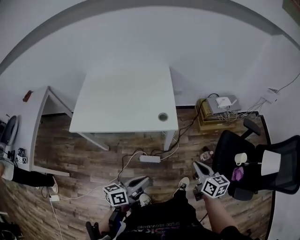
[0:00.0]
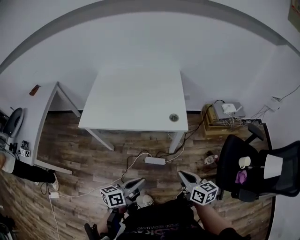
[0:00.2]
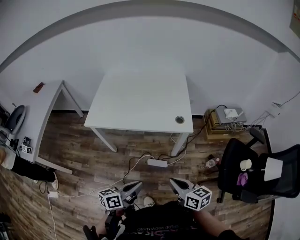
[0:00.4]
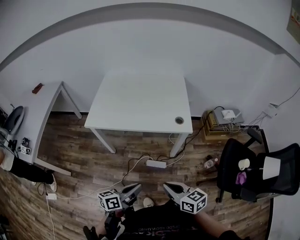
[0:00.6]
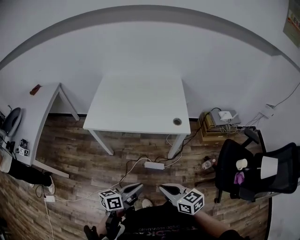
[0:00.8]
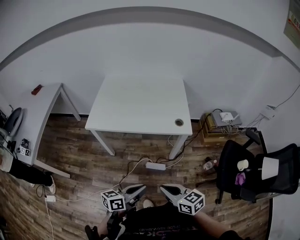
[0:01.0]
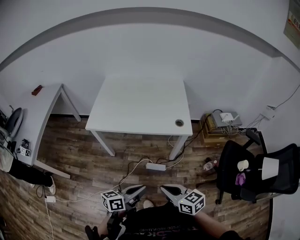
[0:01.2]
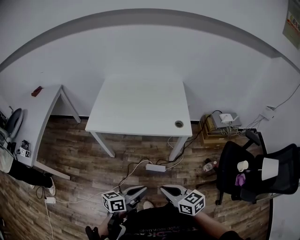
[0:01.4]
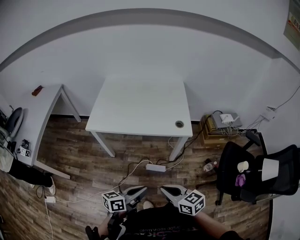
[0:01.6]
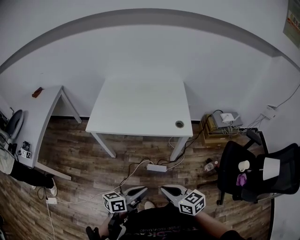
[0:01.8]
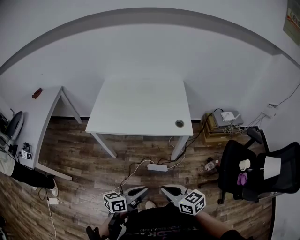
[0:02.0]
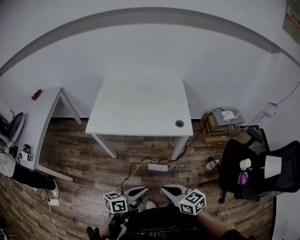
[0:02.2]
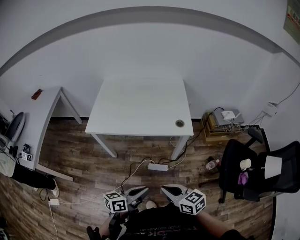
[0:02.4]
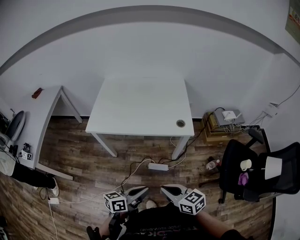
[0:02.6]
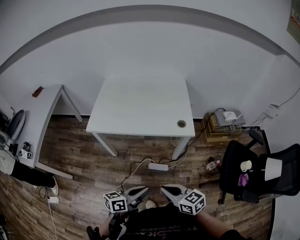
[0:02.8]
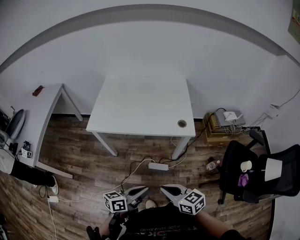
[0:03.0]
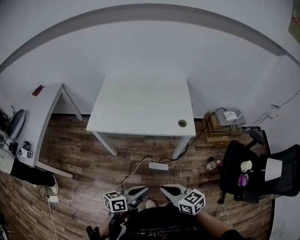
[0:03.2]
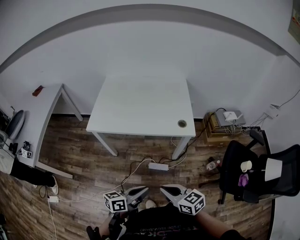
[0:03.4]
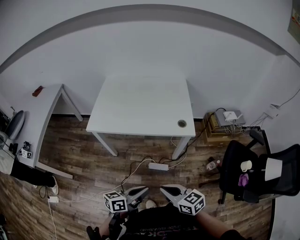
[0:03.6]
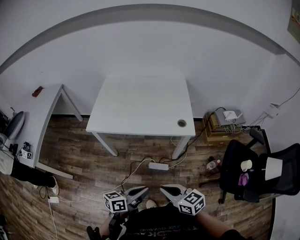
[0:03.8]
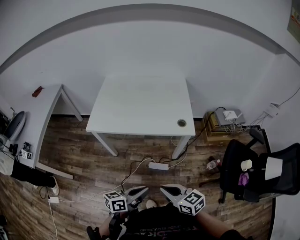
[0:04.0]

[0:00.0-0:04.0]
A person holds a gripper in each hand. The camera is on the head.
0:00.0 to 0:01.4: The left gripper is displaced to the left and backward by approximately 15 cm. The right gripper heads to the left and backward, covering roughly 30 cm, and changes its angle by about 30 degrees.
0:01.4 to 0:02.6: There are only small adjustments of the grippers.
0:02.6 to 0:04.0: Both grippers stay put.

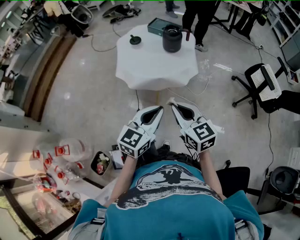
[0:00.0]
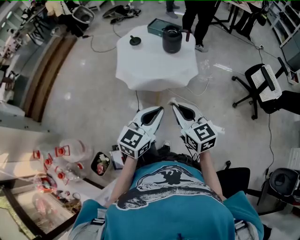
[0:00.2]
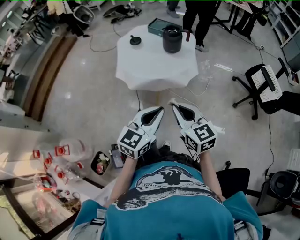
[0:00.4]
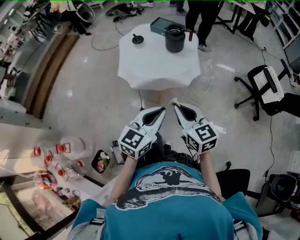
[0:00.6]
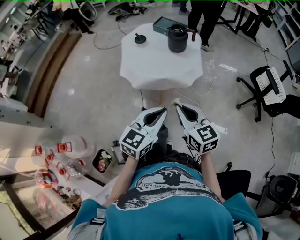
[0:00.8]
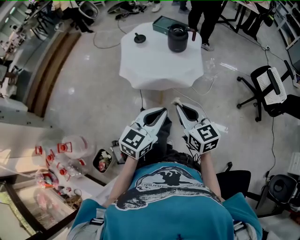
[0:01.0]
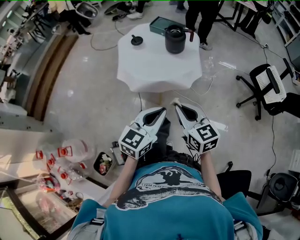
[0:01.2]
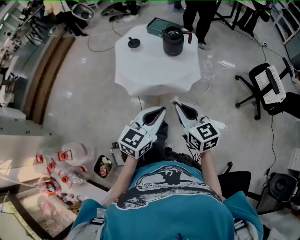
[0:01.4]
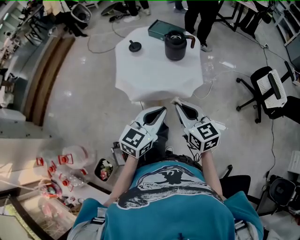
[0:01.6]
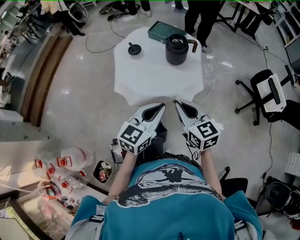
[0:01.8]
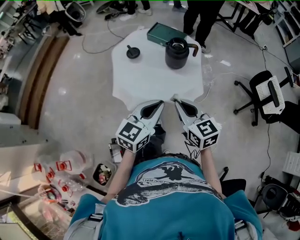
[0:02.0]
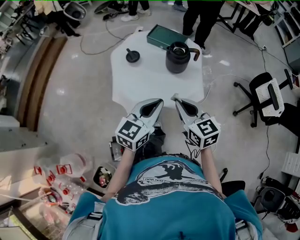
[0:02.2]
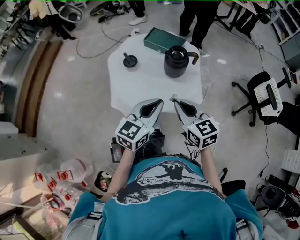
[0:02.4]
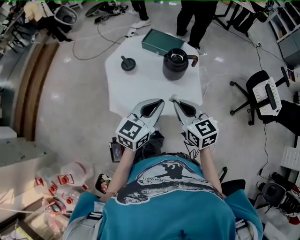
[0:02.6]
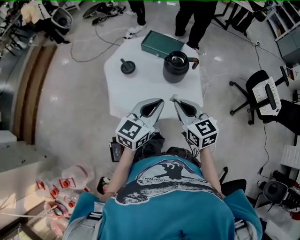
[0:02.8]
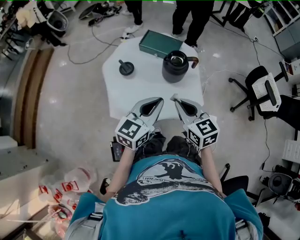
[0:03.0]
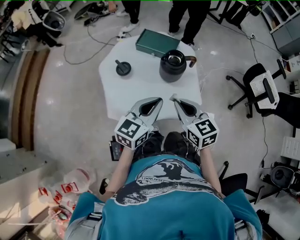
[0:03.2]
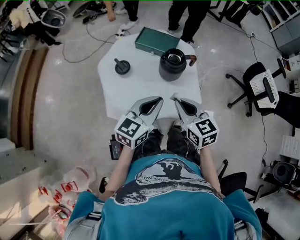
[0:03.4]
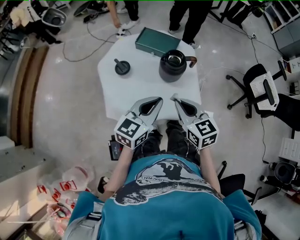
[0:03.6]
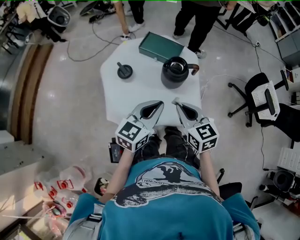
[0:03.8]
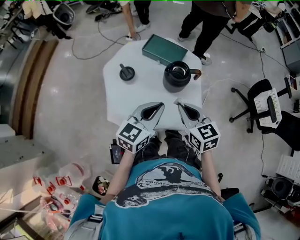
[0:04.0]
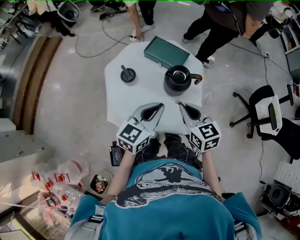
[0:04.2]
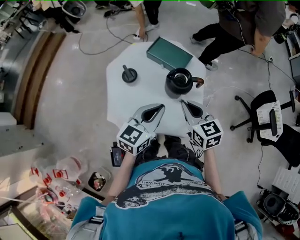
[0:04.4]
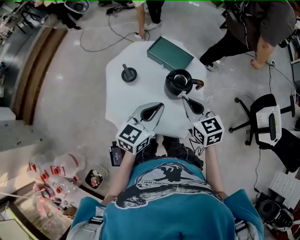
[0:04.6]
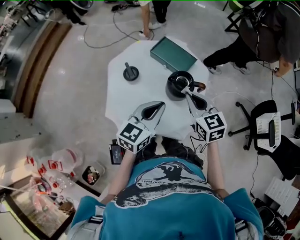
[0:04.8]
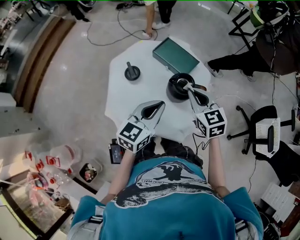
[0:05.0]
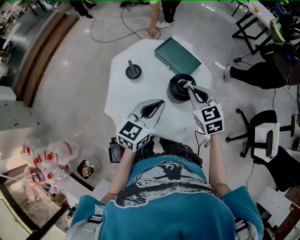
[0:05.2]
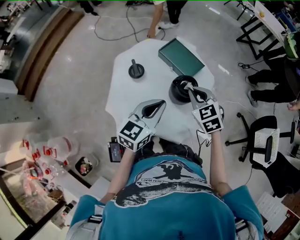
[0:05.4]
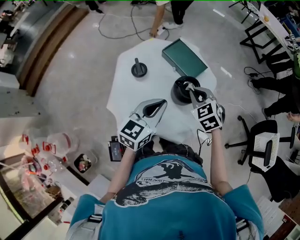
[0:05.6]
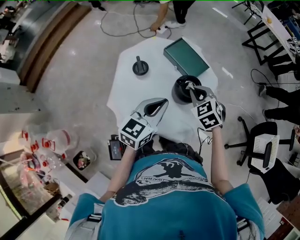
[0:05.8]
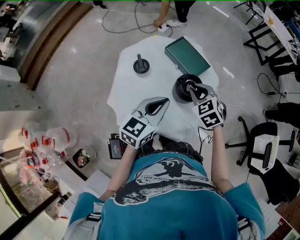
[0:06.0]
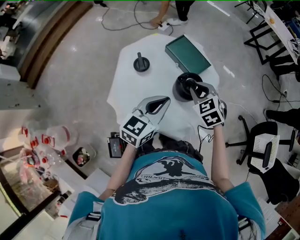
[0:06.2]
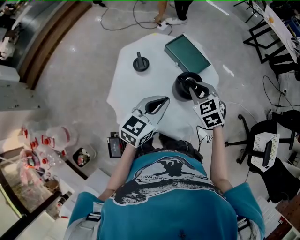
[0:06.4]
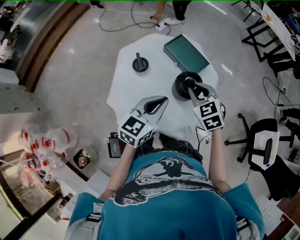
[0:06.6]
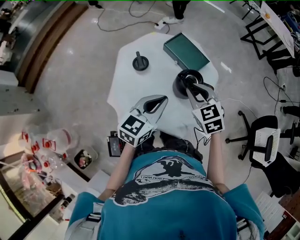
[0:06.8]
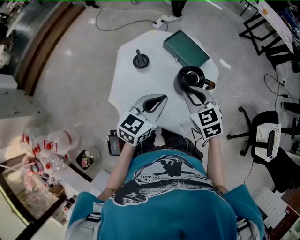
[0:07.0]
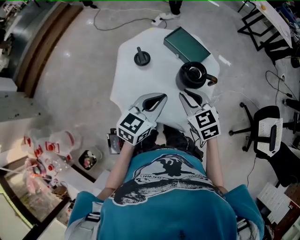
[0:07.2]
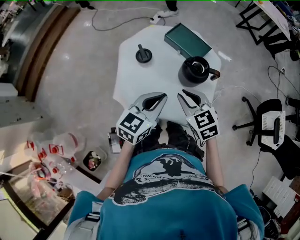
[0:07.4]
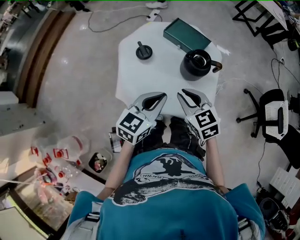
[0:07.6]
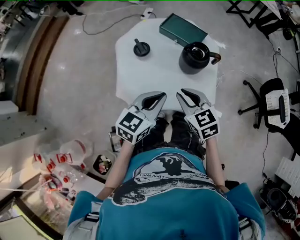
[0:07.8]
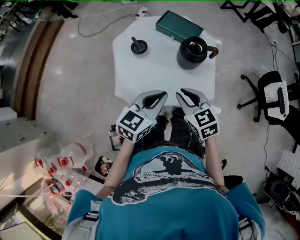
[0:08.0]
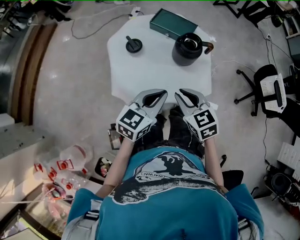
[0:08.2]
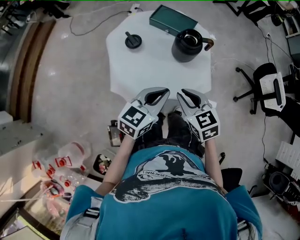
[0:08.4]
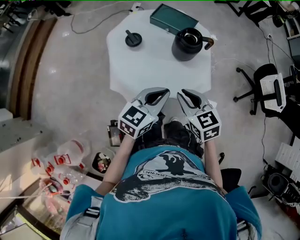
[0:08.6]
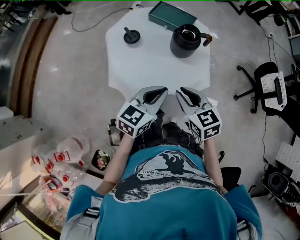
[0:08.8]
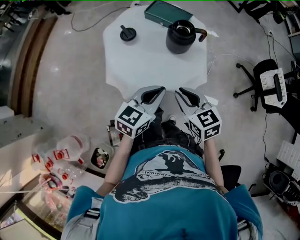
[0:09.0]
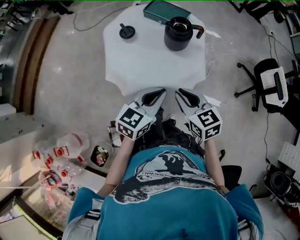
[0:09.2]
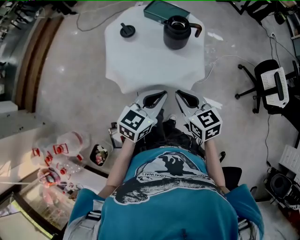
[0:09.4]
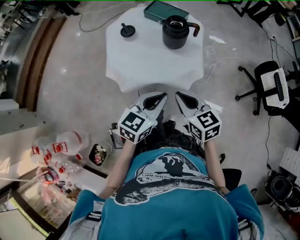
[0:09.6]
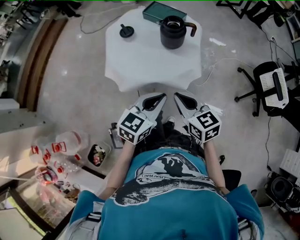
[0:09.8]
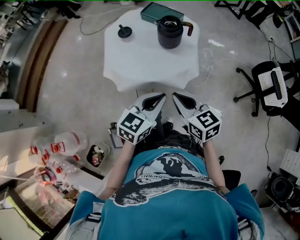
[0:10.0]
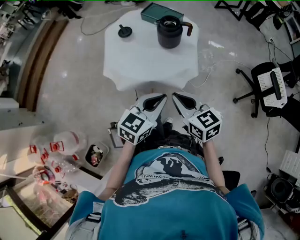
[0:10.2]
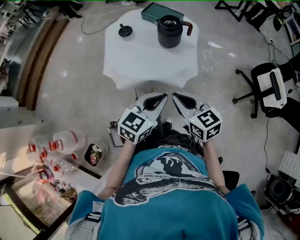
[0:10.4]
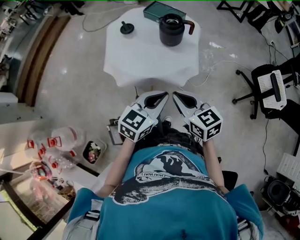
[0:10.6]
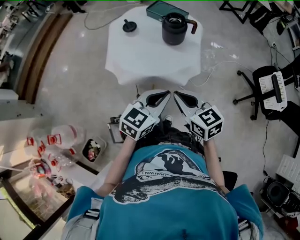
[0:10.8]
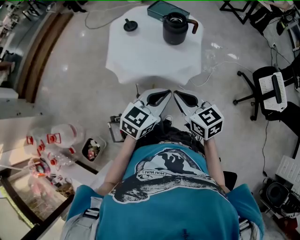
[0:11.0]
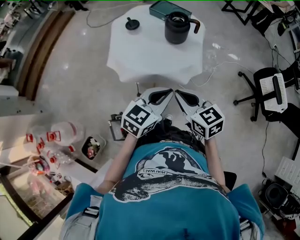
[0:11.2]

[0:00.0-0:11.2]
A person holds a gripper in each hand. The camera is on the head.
0:00.0 to 0:01.6: Both grippers move forward, approximately 10 cm.
0:01.6 to 0:03.2: The two grippers go approximately 20 cm forward.
0:03.2 to 0:04.8: The right gripper moves forward, about 15 cm. Meanwhile the left gripper heads forward, covering approximately 10 cm.
0:04.8 to 0:06.4: The right gripper goes roughly 5 cm forward, and swivels some 30 degrees.
0:06.4 to 0:08.0: The right gripper is displaced backward and to the left by approximately 20 cm, and rotates approximately 30 degrees, while the left gripper goes approximately 15 cm backward and to the left.
0:08.0 to 0:09.6: Both grippers move backward and to the right, approximately 15 cm.
0:09.6 to 0:11.2: The left gripper shifts by about 5 cm; the right gripper ends up some 5 cm from where it was.

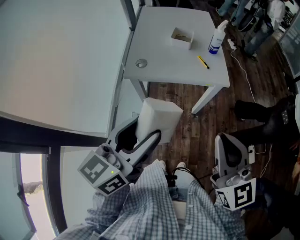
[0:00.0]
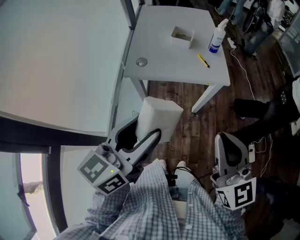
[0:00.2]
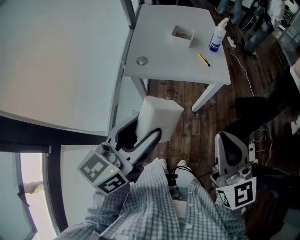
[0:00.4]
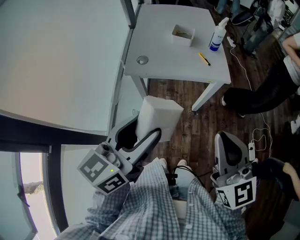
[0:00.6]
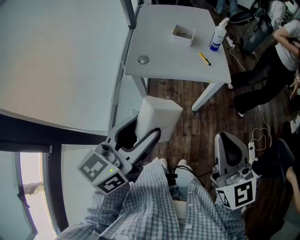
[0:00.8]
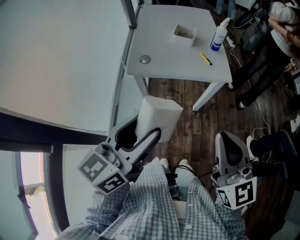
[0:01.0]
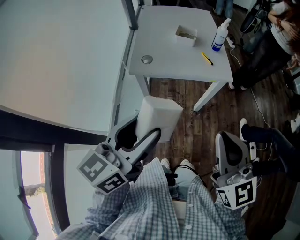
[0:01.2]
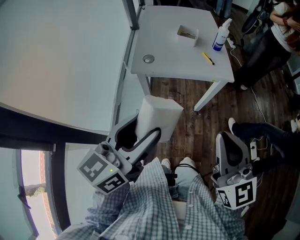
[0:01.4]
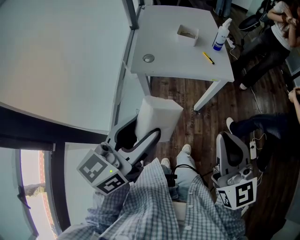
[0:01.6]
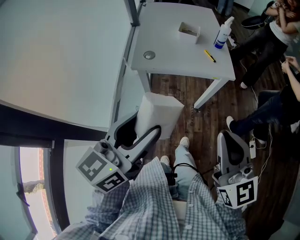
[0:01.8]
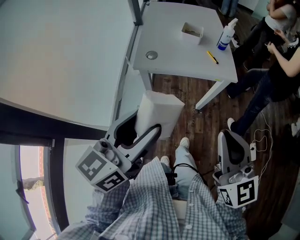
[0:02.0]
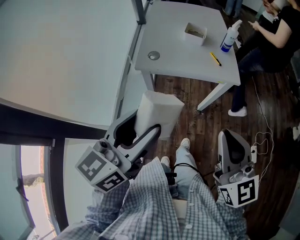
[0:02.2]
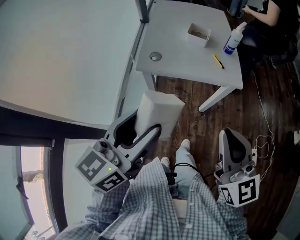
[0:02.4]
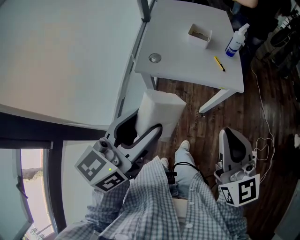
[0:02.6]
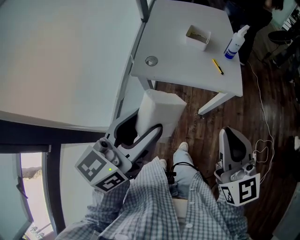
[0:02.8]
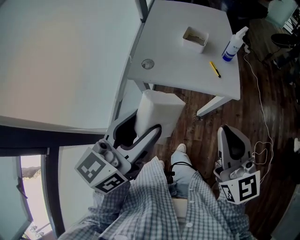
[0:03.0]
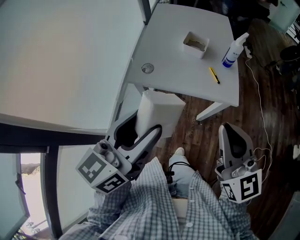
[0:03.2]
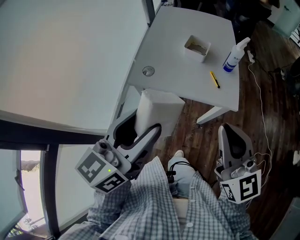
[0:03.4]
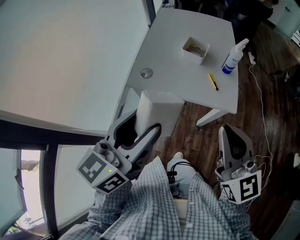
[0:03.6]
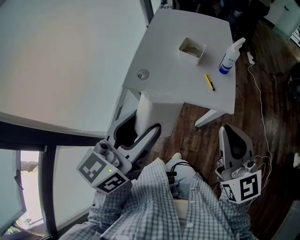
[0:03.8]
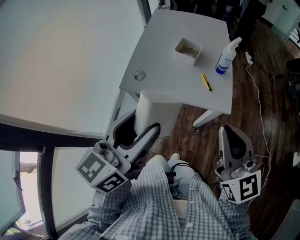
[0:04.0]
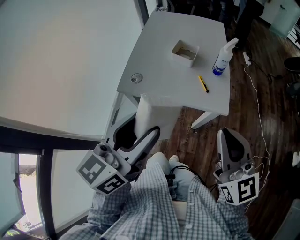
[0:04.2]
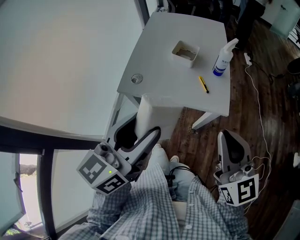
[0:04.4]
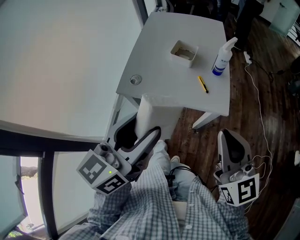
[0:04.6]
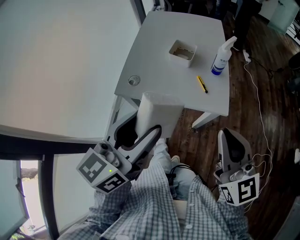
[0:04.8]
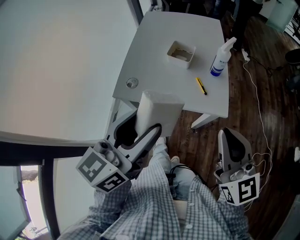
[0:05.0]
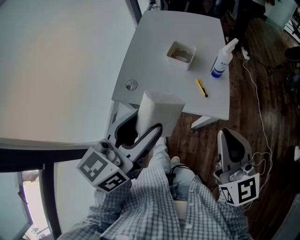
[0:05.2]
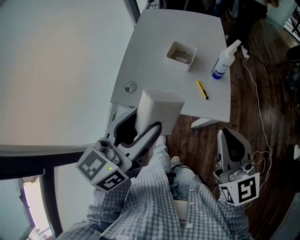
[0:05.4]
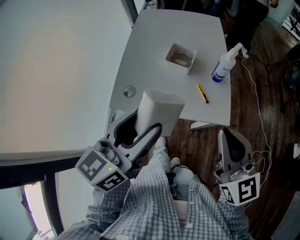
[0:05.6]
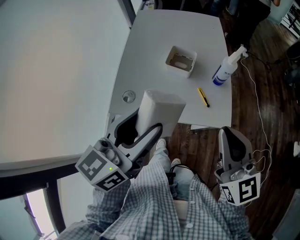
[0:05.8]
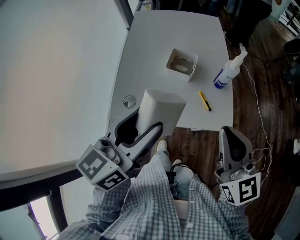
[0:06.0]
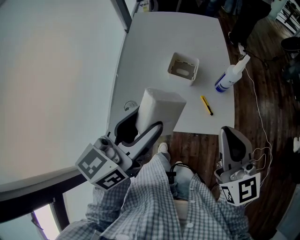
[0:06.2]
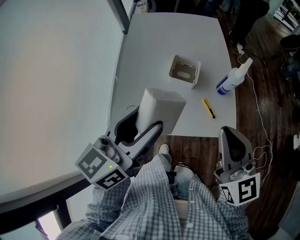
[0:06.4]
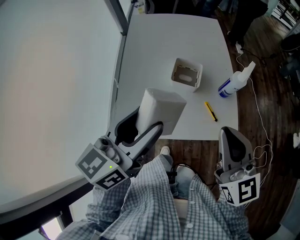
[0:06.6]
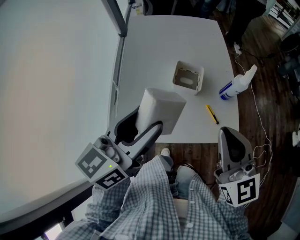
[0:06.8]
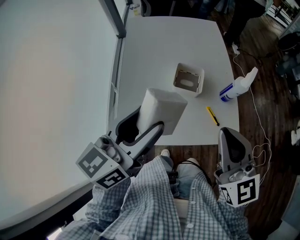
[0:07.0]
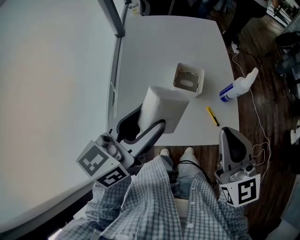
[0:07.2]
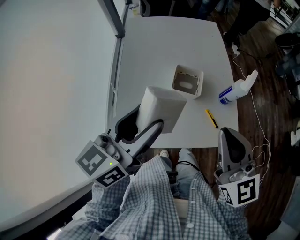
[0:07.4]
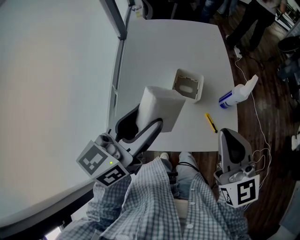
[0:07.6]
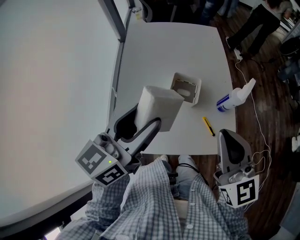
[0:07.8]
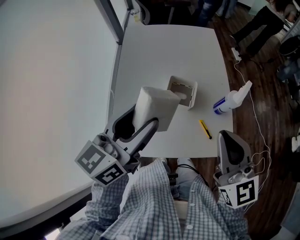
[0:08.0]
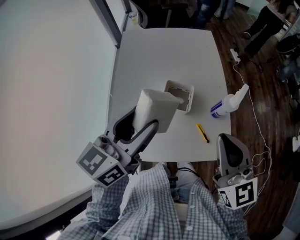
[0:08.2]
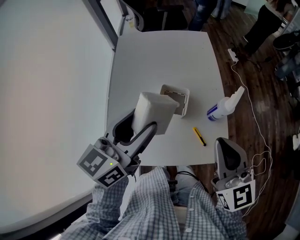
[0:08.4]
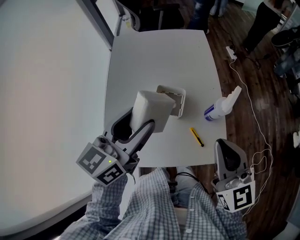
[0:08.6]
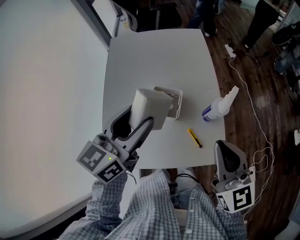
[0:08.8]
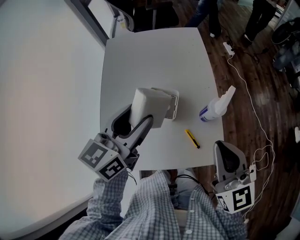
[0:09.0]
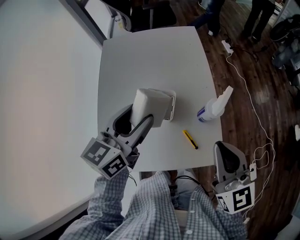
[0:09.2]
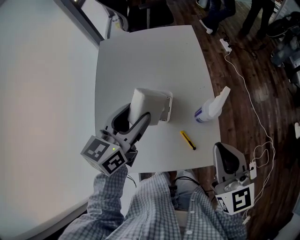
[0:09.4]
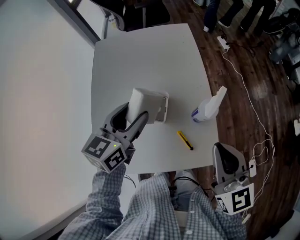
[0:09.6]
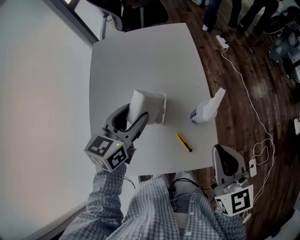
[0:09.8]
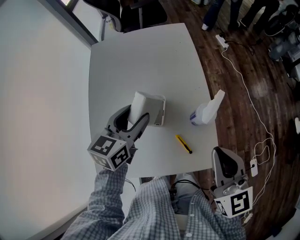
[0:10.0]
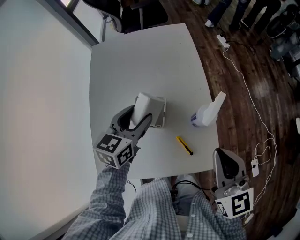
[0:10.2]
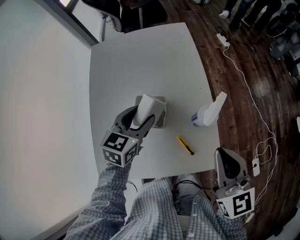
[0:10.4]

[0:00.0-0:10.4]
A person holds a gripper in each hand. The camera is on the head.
0:00.0 to 0:01.4: The right gripper shifts by roughly 5 cm; the left gripper shifts by roughly 5 cm.
0:01.4 to 0:03.0: The two grippers go approximately 10 cm forward.
0:03.0 to 0:04.4: The two grippers go roughly 10 cm to the right.
0:04.4 to 0:06.0: Both grippers move forward, roughly 15 cm.
0:06.0 to 0:07.4: The left gripper travels forward and to the left by approximately 10 cm. Meanwhile the right gripper moves to the left and forward, approximately 10 cm.
0:07.4 to 0:09.0: The right gripper shifts approximately 10 cm to the right and forward; the left gripper moves forward and to the right, about 15 cm.
0:09.0 to 0:10.4: The right gripper moves some 5 cm; the left gripper shifts some 15 cm downward and forward, and turns by some 20 degrees.
